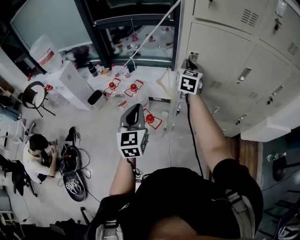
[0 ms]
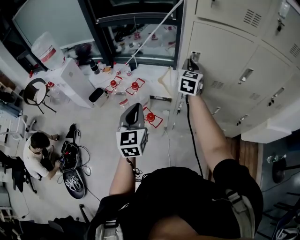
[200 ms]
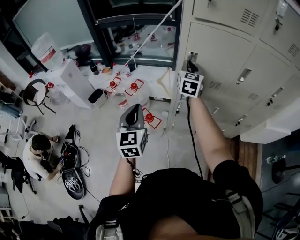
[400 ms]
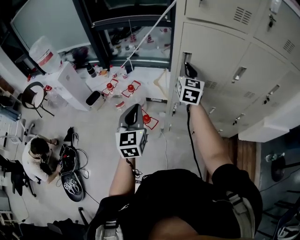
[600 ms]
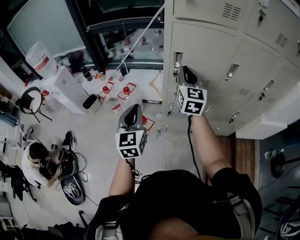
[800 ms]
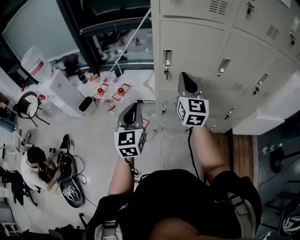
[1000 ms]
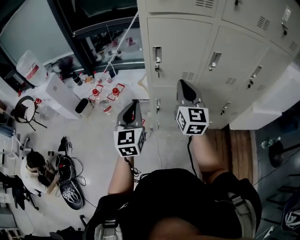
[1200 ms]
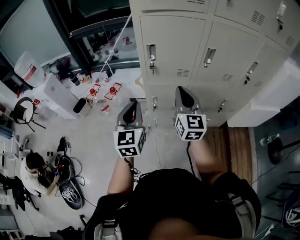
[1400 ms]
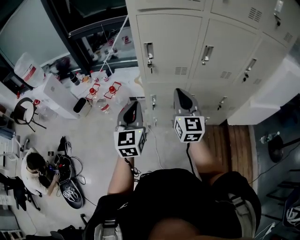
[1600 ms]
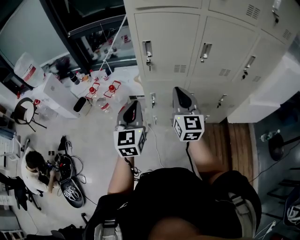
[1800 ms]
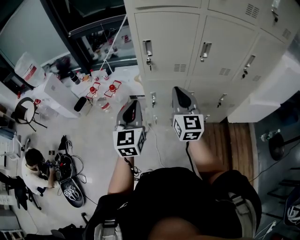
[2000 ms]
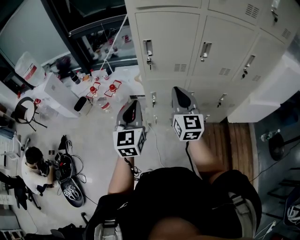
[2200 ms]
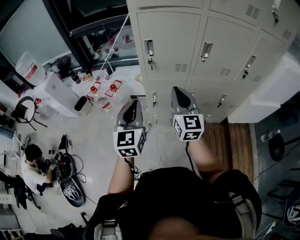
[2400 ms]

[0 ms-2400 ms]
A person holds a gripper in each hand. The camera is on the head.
0 ms to 1200 ms: The right gripper heads backward and to the right, covering some 20 cm. Meanwhile the left gripper shifts roughly 10 cm to the right.
1200 ms to 2400 ms: The left gripper moves approximately 5 cm. The right gripper is displaced backward by roughly 5 cm.

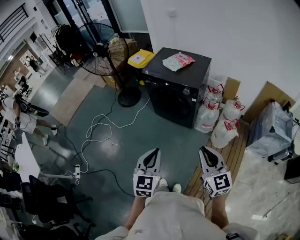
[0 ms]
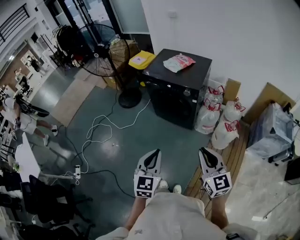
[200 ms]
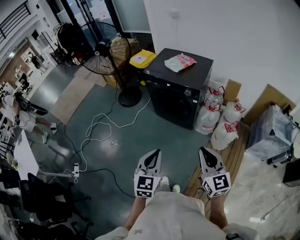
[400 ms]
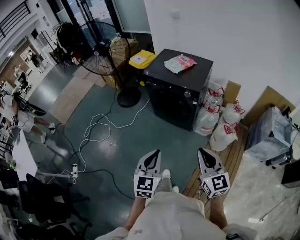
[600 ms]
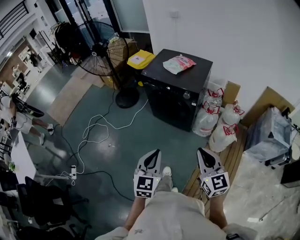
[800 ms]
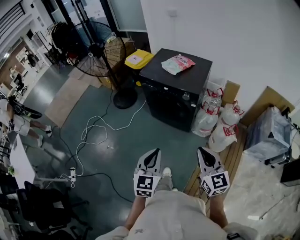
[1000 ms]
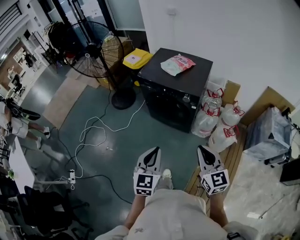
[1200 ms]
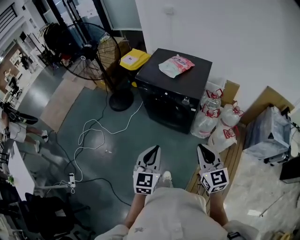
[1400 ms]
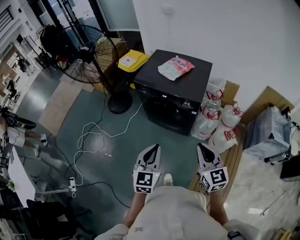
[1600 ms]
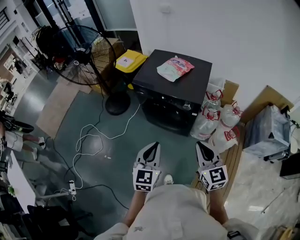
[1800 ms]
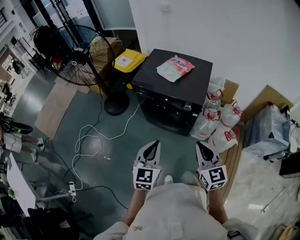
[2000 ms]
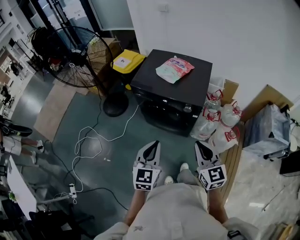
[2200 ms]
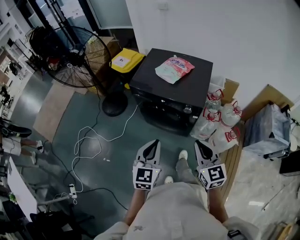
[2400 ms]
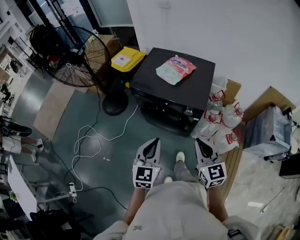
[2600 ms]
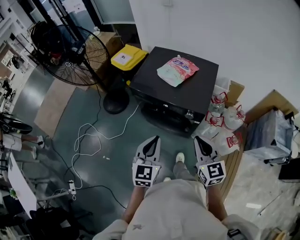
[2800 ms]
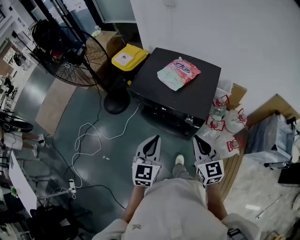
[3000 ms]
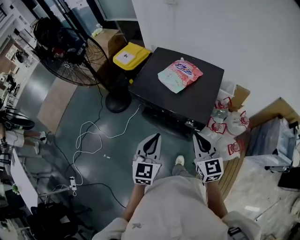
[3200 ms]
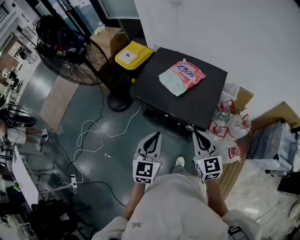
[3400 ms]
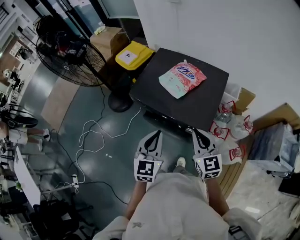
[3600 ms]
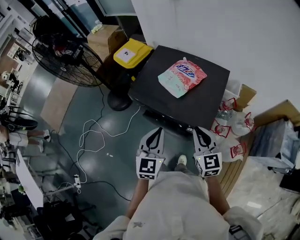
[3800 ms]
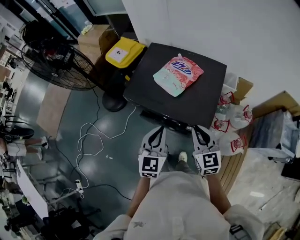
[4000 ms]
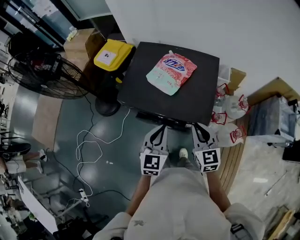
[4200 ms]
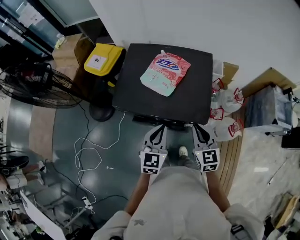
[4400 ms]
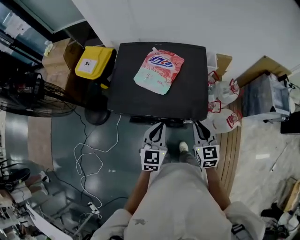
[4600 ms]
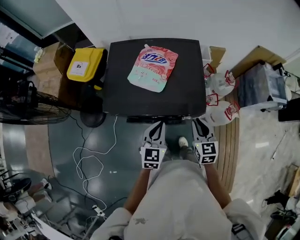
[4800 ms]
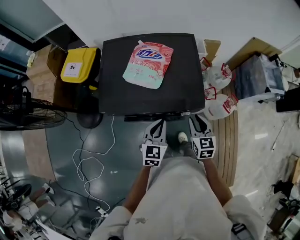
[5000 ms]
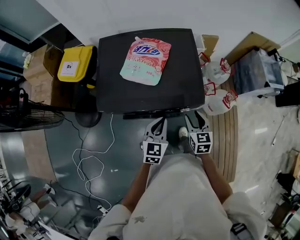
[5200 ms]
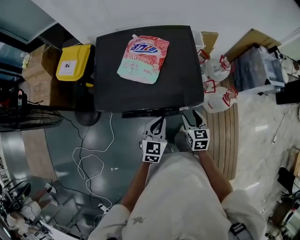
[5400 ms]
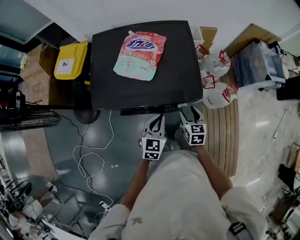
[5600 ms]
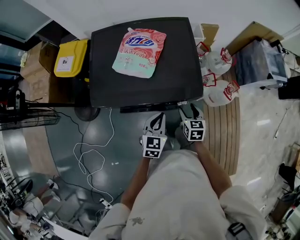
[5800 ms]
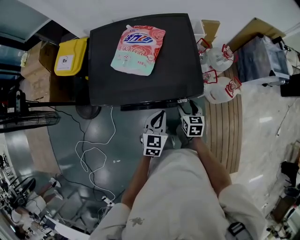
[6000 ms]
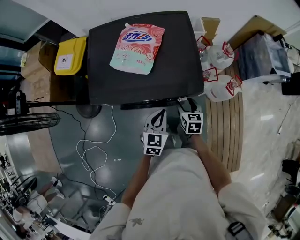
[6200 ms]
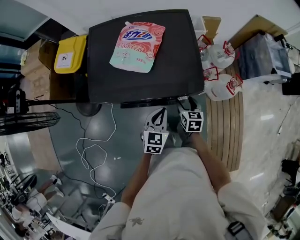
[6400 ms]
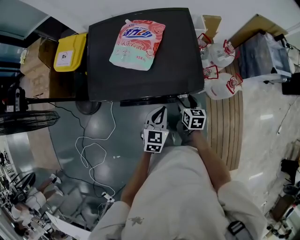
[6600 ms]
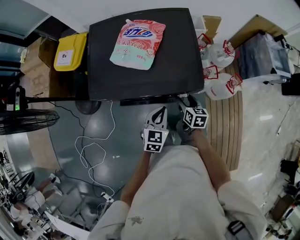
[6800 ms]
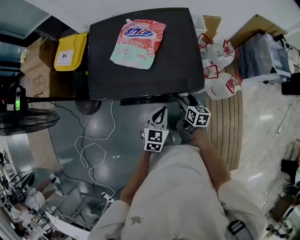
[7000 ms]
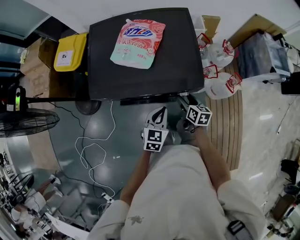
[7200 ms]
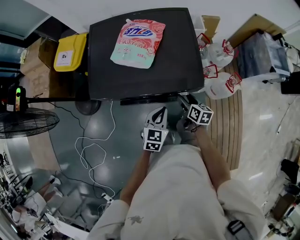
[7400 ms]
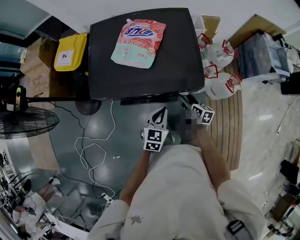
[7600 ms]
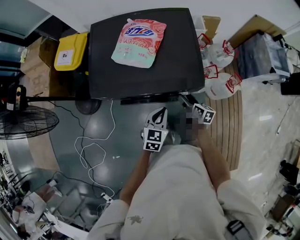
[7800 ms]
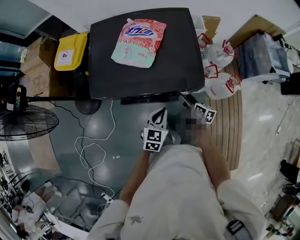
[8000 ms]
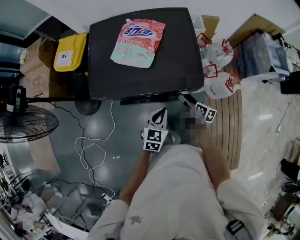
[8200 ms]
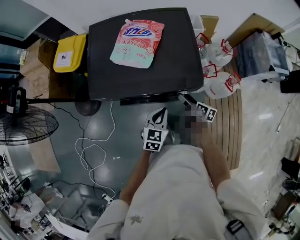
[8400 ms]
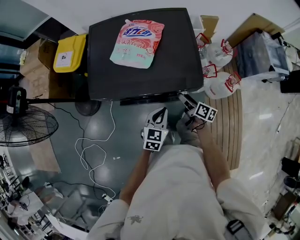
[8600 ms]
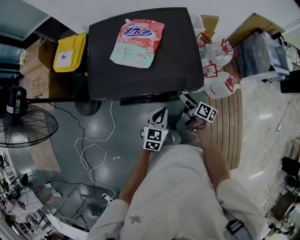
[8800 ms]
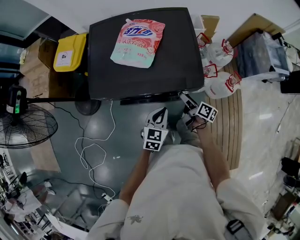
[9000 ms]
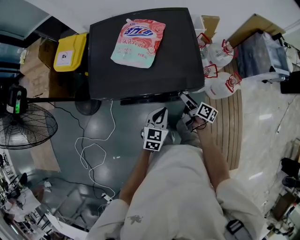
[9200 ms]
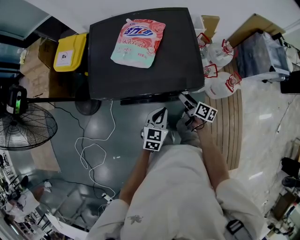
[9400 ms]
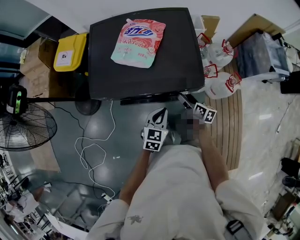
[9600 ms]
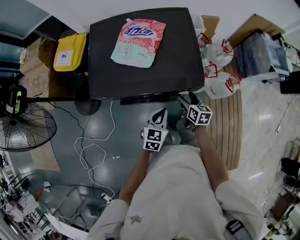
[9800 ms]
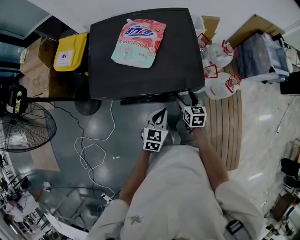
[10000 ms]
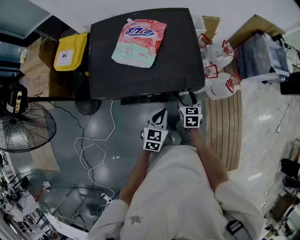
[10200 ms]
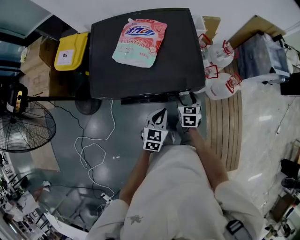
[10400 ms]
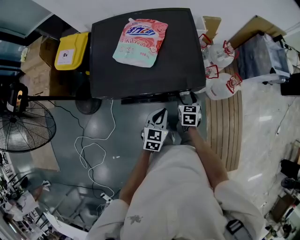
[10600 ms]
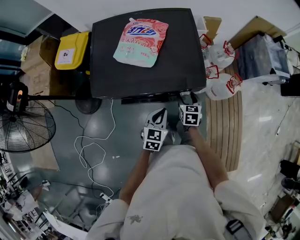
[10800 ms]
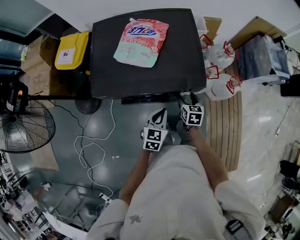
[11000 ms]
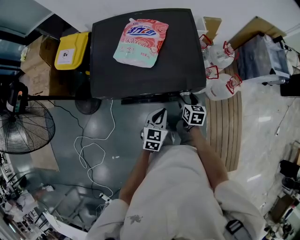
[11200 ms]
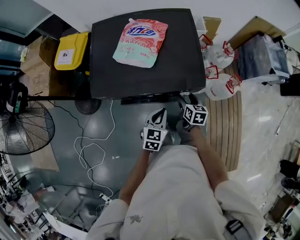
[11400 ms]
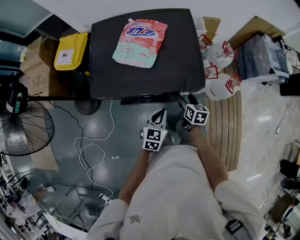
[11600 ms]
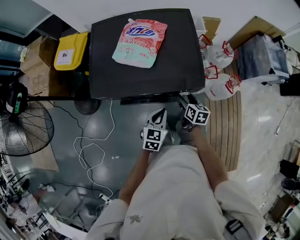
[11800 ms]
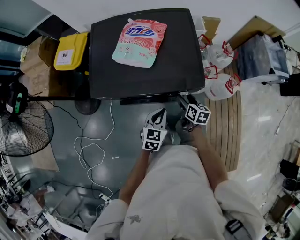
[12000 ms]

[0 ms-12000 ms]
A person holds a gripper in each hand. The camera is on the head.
0 ms to 1600 ms: Both grippers move forward, roughly 20 cm.
1600 ms to 3000 ms: The two grippers go roughly 20 cm forward.
3000 ms to 4400 ms: Both grippers travel together forward and downward, approximately 20 cm.
4400 ms to 6000 ms: The two grippers go some 20 cm downward. The right gripper changes its angle by roughly 30 degrees, and opens up, while the left gripper changes its angle by approximately 20 degrees.
6000 ms to 7600 ms: The right gripper changes its angle by roughly 30 degrees.
7600 ms to 9000 ms: The right gripper turns by roughly 30 degrees.
9000 ms to 10400 ms: The right gripper rotates around the line of its fingers by about 60 degrees, counterclockwise from behind.
10400 ms to 12000 ms: The right gripper swivels about 30 degrees.

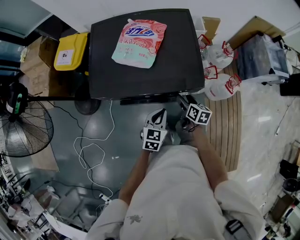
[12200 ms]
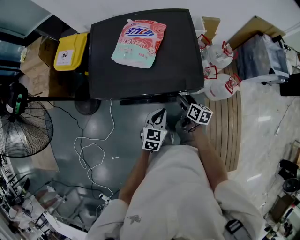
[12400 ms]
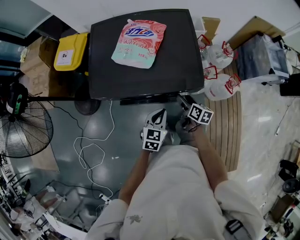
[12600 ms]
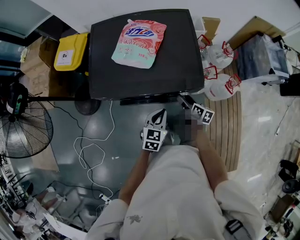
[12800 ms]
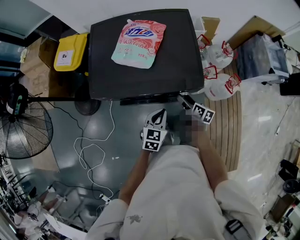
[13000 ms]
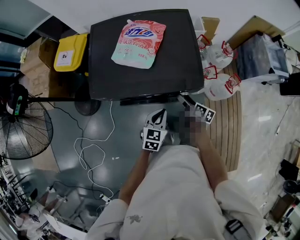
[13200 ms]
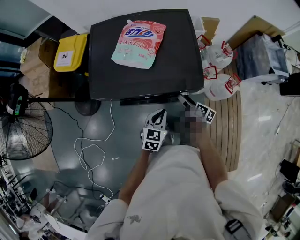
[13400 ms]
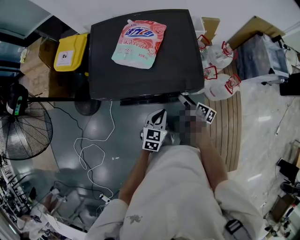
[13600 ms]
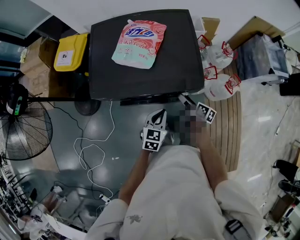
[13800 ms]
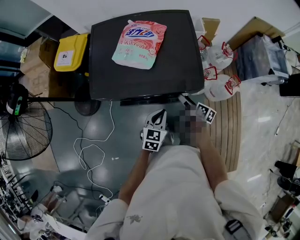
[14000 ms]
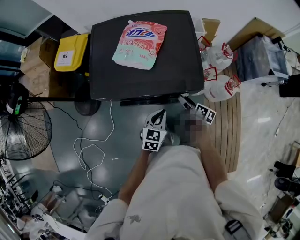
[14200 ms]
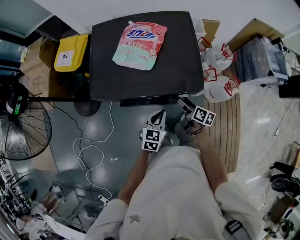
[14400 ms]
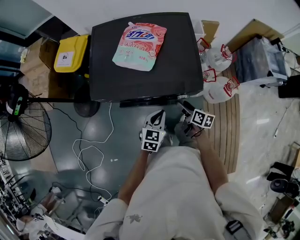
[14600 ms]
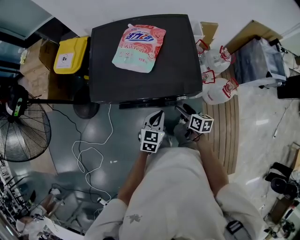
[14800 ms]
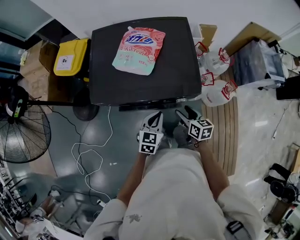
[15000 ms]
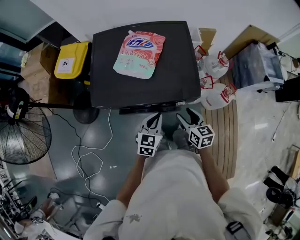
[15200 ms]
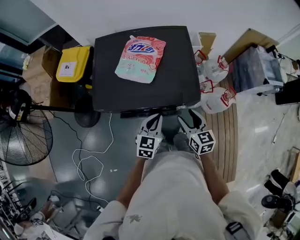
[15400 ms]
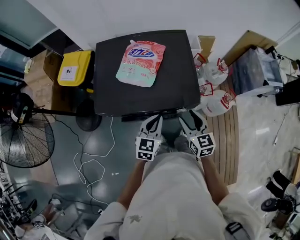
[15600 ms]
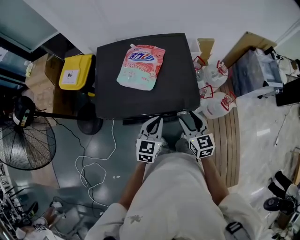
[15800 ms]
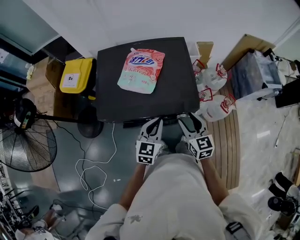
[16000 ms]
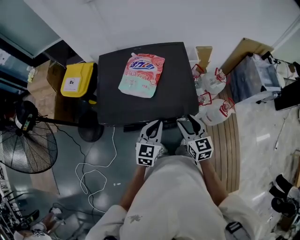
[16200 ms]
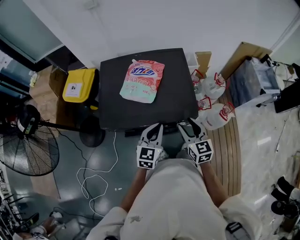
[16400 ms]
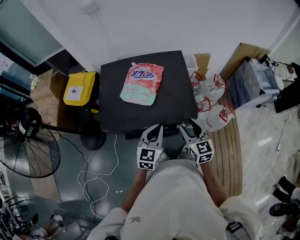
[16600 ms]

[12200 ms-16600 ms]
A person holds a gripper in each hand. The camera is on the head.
12200 ms to 13600 ms: The right gripper swivels some 20 degrees.
13600 ms to 15200 ms: The left gripper moves about 5 cm. The right gripper heads upward, covering roughly 10 cm, and rolls counterclockwise, seen from behind, by some 40 degrees.
15200 ms to 16600 ms: Both grippers move upward, roughly 10 cm. The right gripper swivels about 20 degrees.

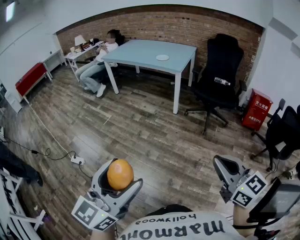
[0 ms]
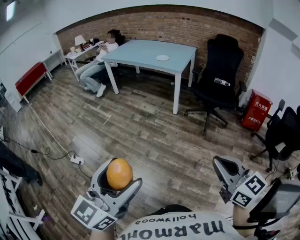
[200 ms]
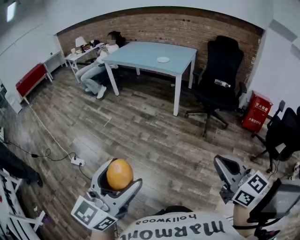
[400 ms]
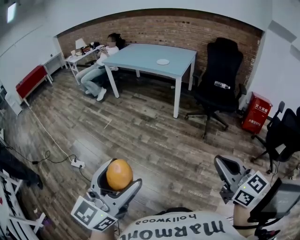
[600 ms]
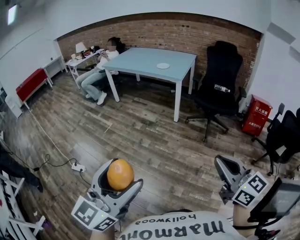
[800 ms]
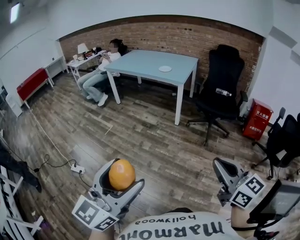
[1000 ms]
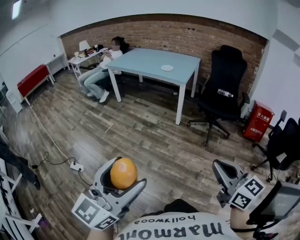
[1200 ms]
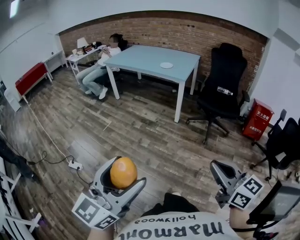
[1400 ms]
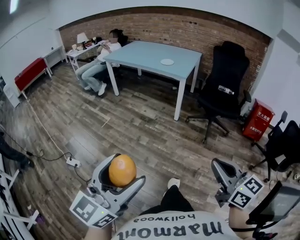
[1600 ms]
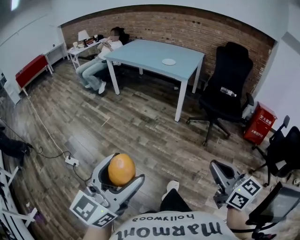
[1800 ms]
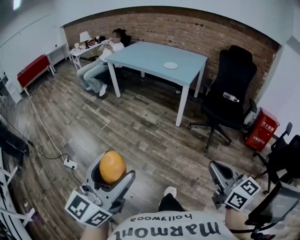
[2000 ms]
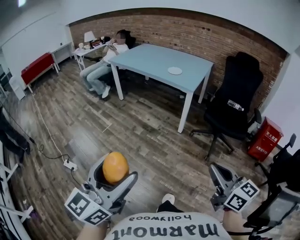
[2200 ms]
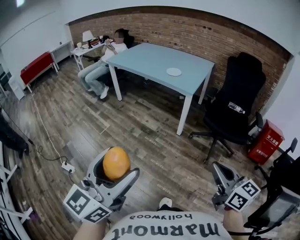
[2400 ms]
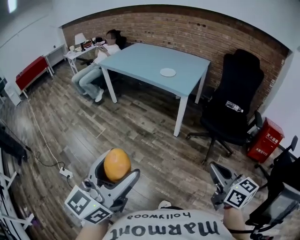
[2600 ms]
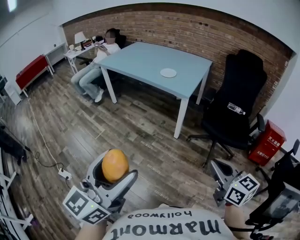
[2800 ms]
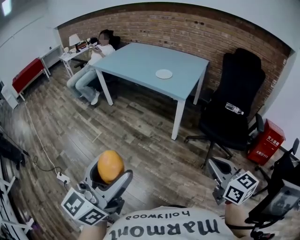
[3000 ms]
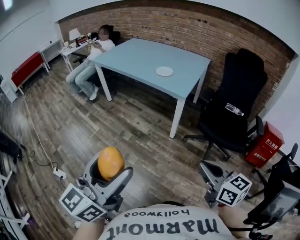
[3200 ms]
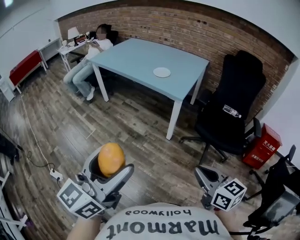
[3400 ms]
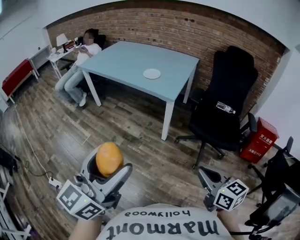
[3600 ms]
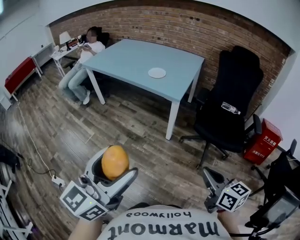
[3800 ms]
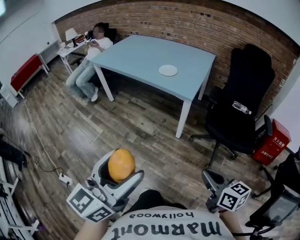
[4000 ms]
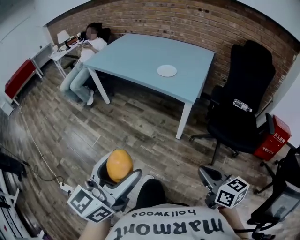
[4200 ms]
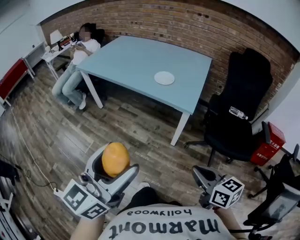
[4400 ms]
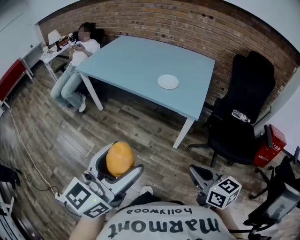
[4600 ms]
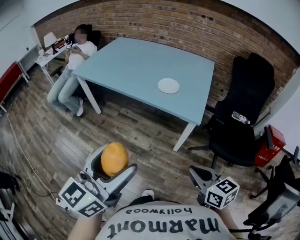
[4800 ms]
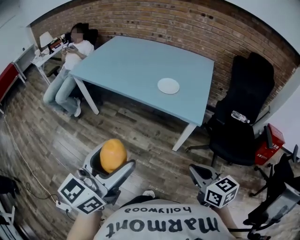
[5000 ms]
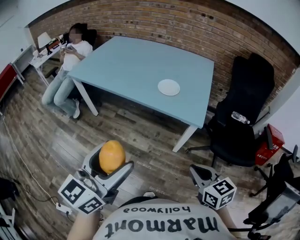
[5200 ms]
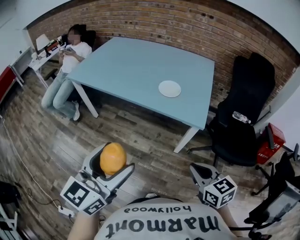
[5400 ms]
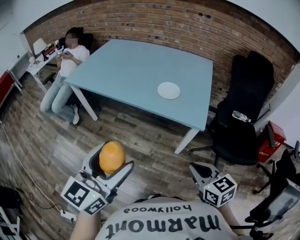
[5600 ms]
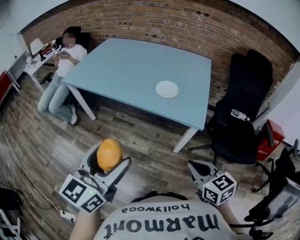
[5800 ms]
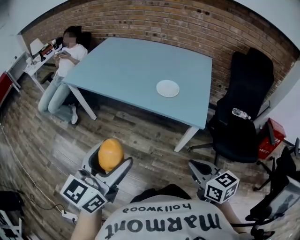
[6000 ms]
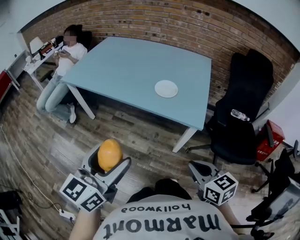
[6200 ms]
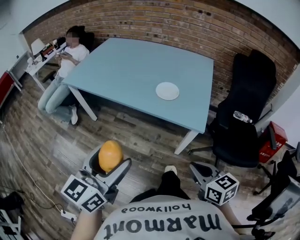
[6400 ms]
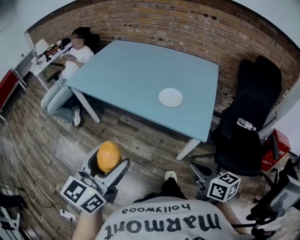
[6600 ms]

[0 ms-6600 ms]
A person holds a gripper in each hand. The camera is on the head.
0 ms to 1600 ms: Both grippers travel together forward, about 5 cm.
1600 ms to 3200 ms: The two grippers go approximately 40 cm forward.
3200 ms to 5000 ms: The right gripper heads forward and to the left, covering some 35 cm. Meanwhile the left gripper travels forward by about 35 cm.
5000 ms to 6600 ms: Both grippers travel together forward, roughly 10 cm.
